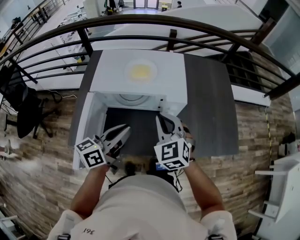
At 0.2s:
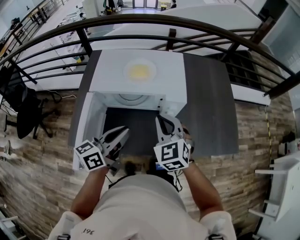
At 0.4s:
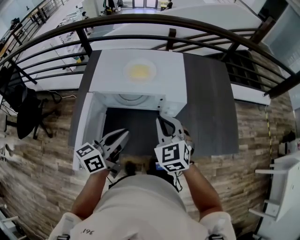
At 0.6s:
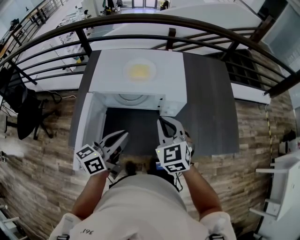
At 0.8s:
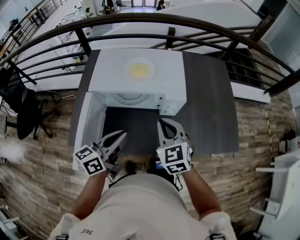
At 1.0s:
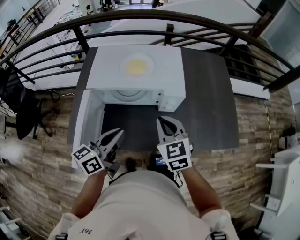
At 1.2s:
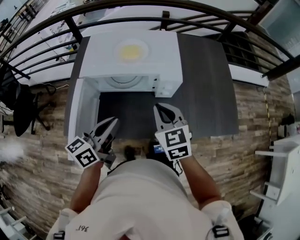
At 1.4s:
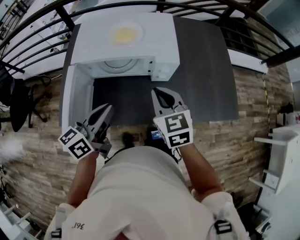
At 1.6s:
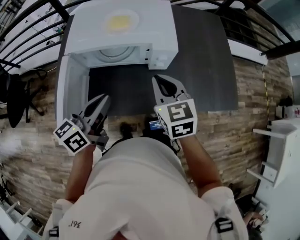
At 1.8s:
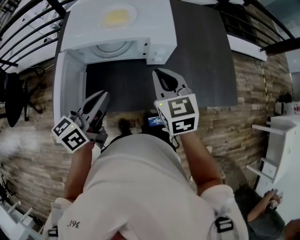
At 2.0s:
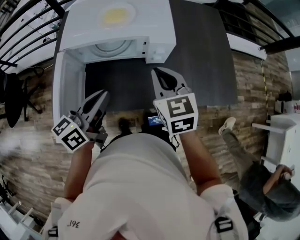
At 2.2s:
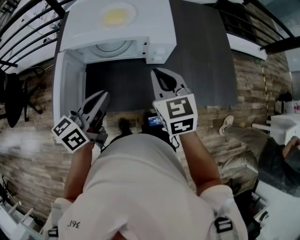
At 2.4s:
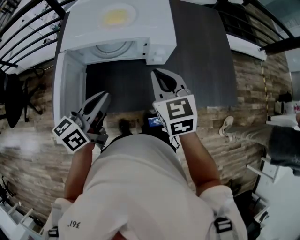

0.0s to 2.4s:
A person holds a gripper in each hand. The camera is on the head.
0.0s to 1.2s: The right gripper swivels some 20 degrees.
1.2s to 2.4s: The grippers move only a little.

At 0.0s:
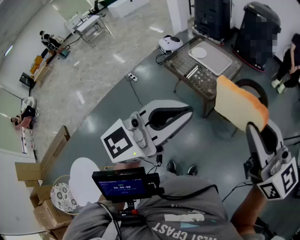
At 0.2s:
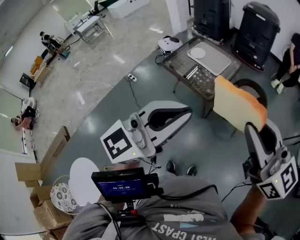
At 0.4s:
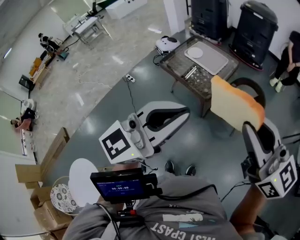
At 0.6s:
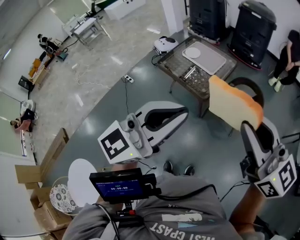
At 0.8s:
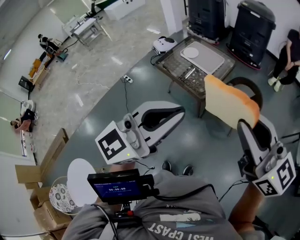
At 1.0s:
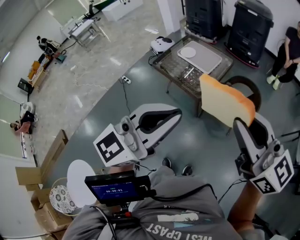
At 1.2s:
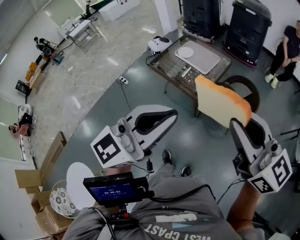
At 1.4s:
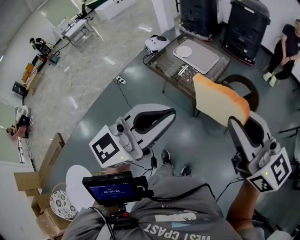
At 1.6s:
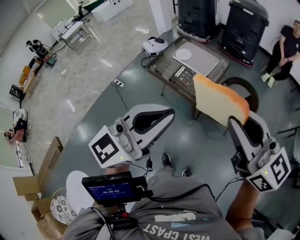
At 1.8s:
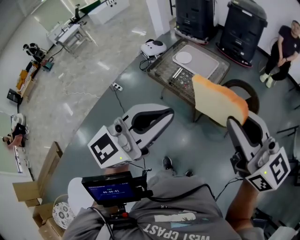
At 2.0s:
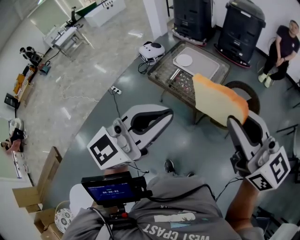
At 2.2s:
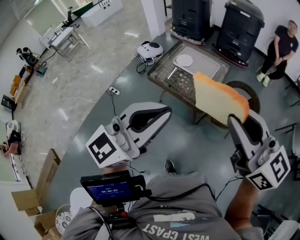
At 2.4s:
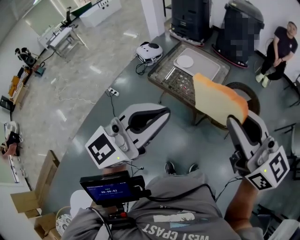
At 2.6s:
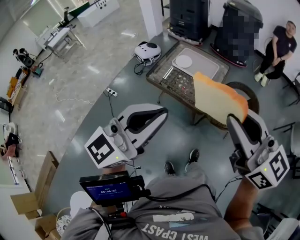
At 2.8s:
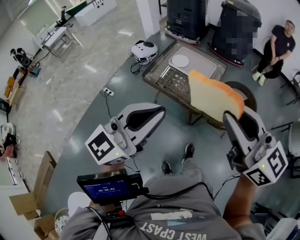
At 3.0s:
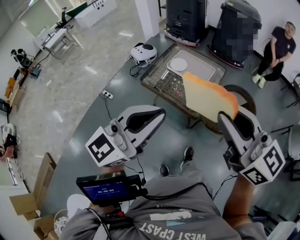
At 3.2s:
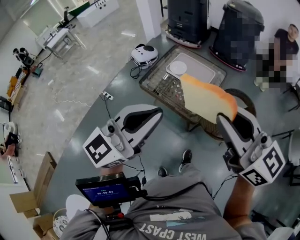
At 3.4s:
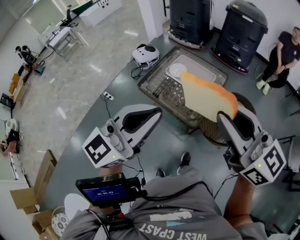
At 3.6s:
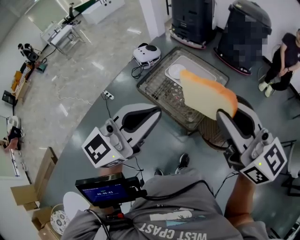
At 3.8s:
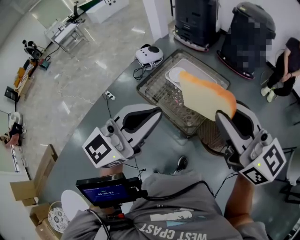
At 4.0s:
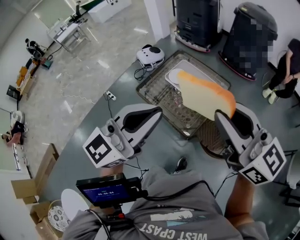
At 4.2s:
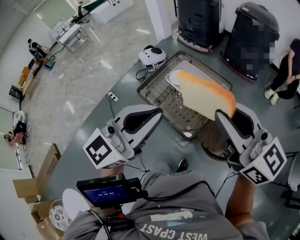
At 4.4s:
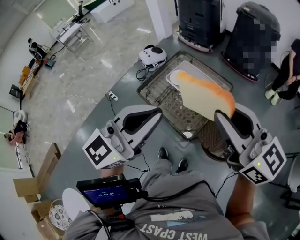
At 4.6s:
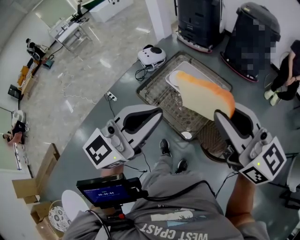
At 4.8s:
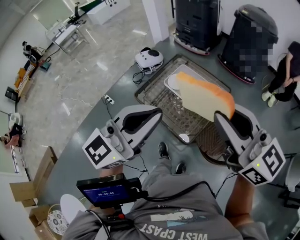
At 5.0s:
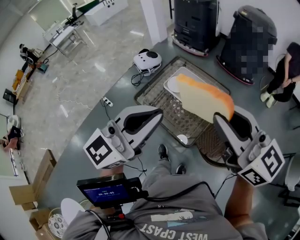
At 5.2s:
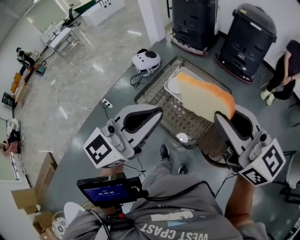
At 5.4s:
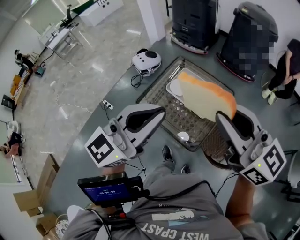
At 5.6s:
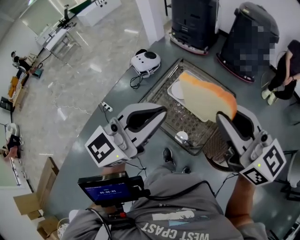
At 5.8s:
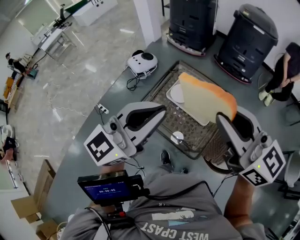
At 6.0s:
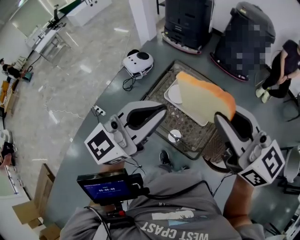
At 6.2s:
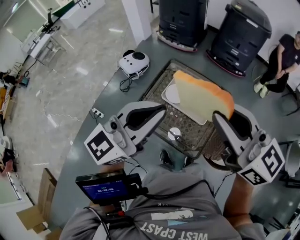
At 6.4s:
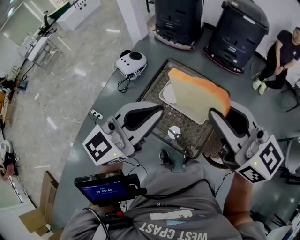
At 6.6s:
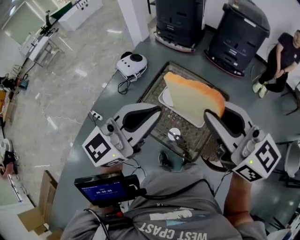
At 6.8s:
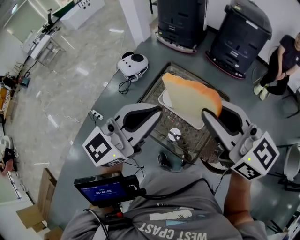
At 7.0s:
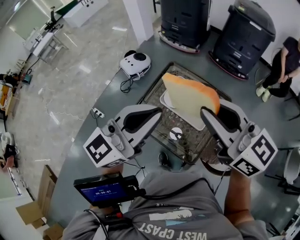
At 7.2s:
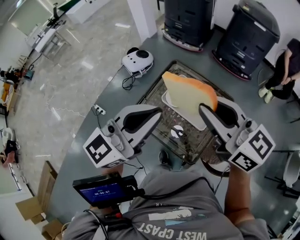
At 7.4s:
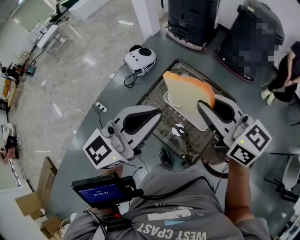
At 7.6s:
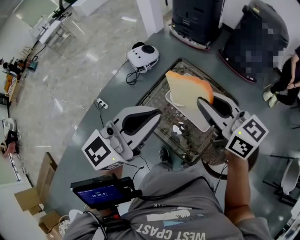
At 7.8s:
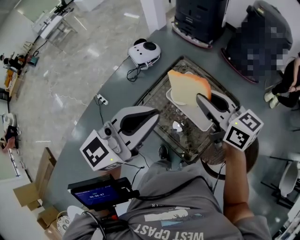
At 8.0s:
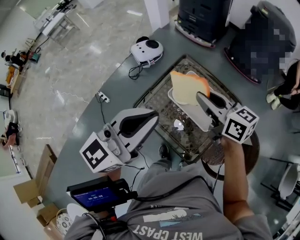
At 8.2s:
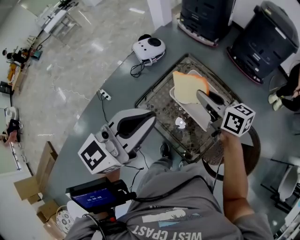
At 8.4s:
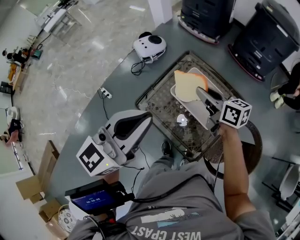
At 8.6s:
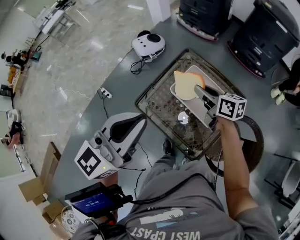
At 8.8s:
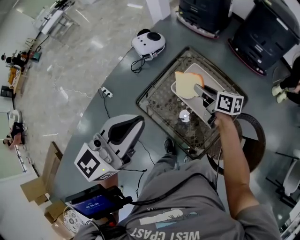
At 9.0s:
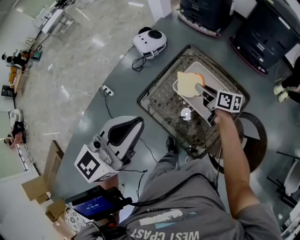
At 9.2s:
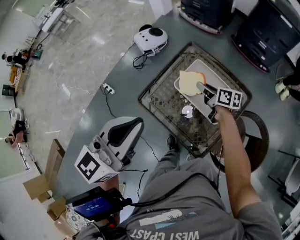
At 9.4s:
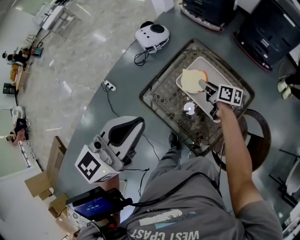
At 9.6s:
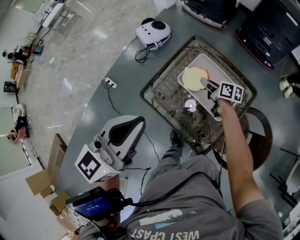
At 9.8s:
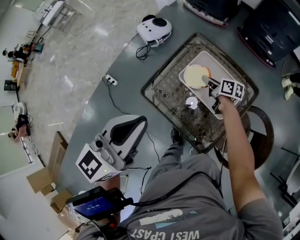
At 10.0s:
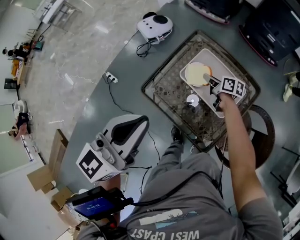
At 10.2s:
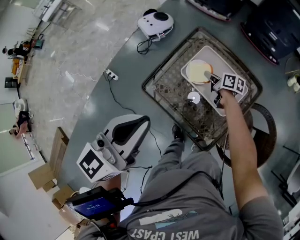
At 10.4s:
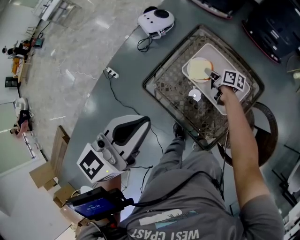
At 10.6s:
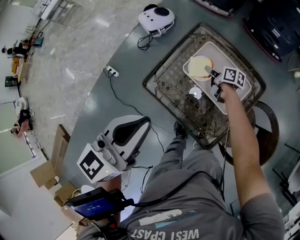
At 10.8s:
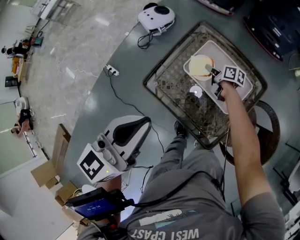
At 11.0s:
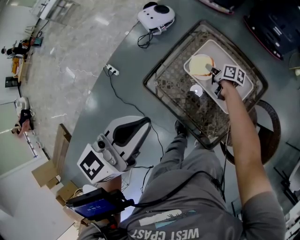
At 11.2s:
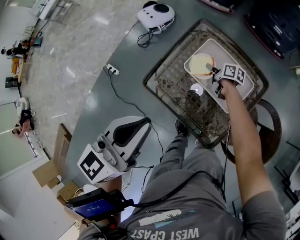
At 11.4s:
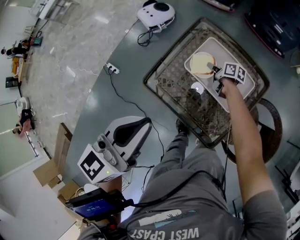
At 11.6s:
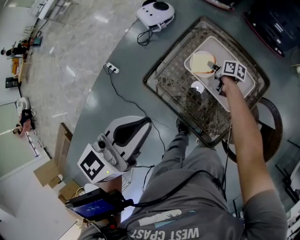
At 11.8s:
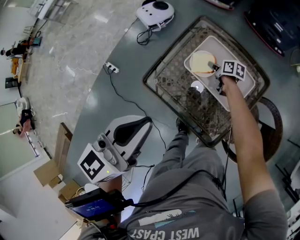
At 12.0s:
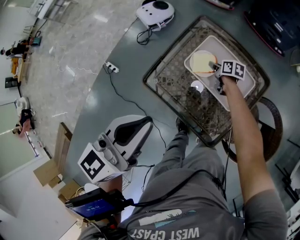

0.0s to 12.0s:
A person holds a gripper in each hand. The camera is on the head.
0.0s to 1.6s: Both grippers move forward, about 5 cm.
1.6s to 3.0s: The grippers both shift forward and to the left by about 15 cm.
3.0s to 4.4s: The grippers both shift forward and to the right by about 20 cm.
4.4s to 6.0s: The grippers both shift forward and to the left by about 25 cm.
6.0s to 7.6s: The left gripper goes about 5 cm forward; the right gripper goes roughly 15 cm forward and downward.
7.6s to 9.0s: The left gripper shifts approximately 5 cm to the left. Meanwhile the right gripper goes roughly 30 cm downward and forward, and rotates some 40 degrees.
9.0s to 10.4s: The right gripper goes some 15 cm downward; the left gripper is displaced downward by some 5 cm.
10.4s to 12.0s: The right gripper travels downward by some 5 cm.

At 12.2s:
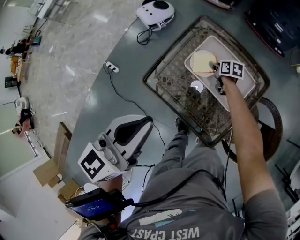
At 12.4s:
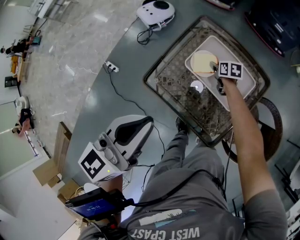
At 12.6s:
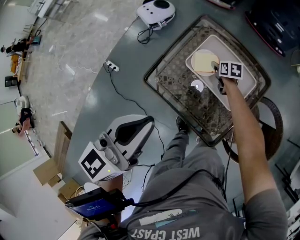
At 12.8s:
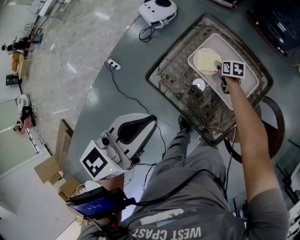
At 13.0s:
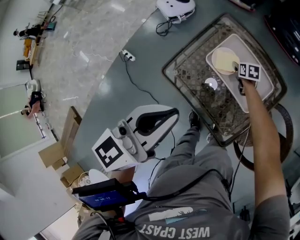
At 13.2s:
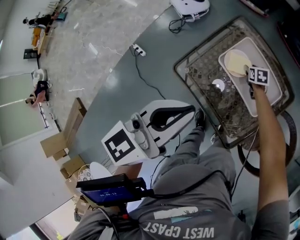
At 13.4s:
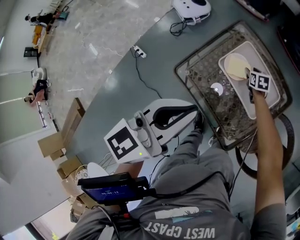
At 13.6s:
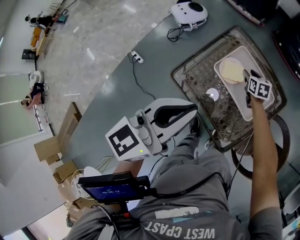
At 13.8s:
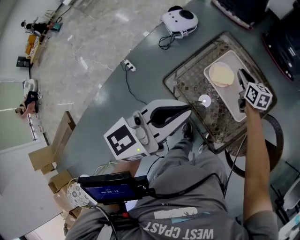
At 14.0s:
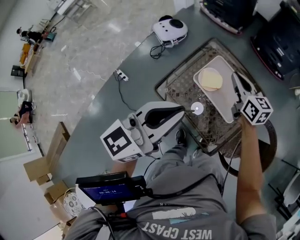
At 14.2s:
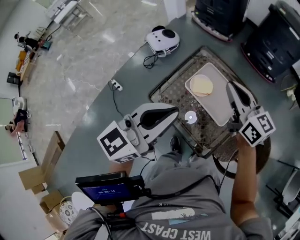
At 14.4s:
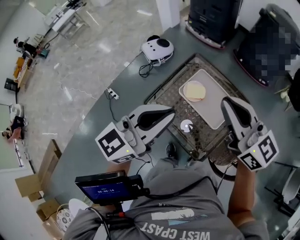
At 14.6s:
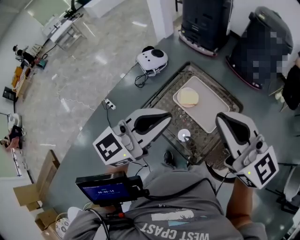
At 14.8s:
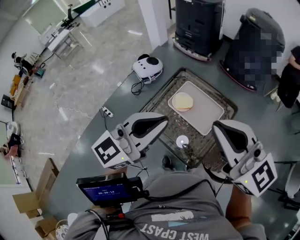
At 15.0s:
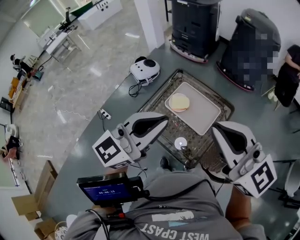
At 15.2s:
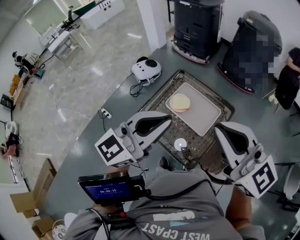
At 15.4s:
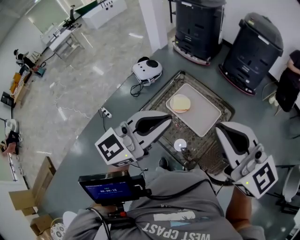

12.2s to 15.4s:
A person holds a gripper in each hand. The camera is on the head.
12.2s to 13.8s: The right gripper goes roughly 15 cm upward, and changes its angle by roughly 30 degrees.
13.8s to 15.4s: The right gripper travels upward and backward by some 50 cm, and angles its fingers upward, by approximately 30 degrees, while the left gripper goes roughly 15 cm upward, to the right and backward, and swivels about 20 degrees.

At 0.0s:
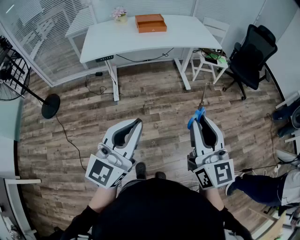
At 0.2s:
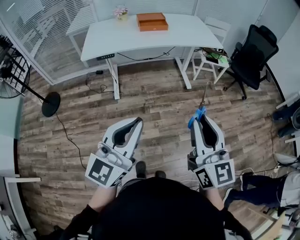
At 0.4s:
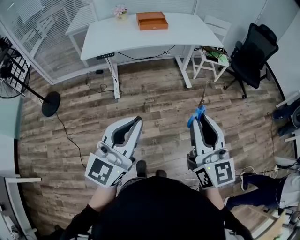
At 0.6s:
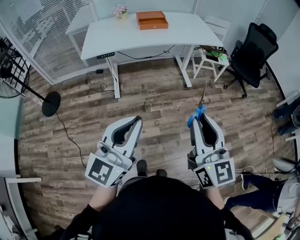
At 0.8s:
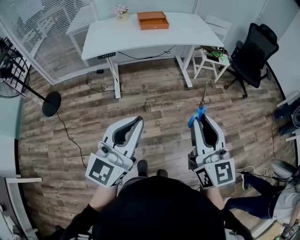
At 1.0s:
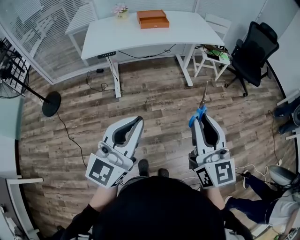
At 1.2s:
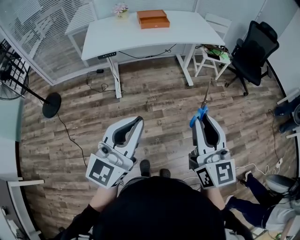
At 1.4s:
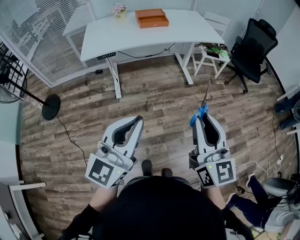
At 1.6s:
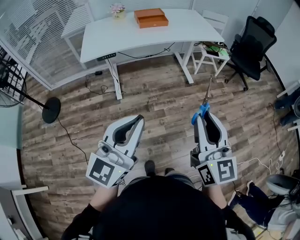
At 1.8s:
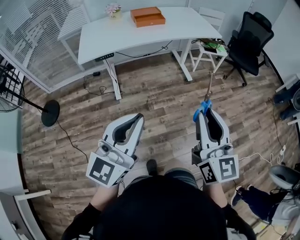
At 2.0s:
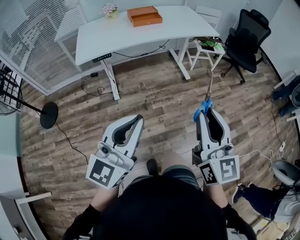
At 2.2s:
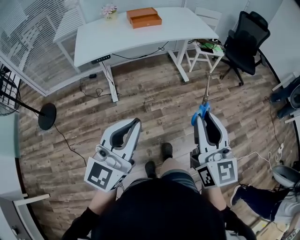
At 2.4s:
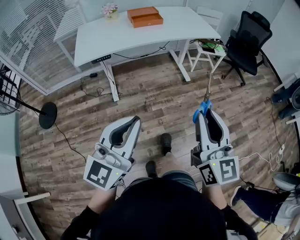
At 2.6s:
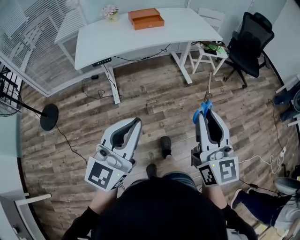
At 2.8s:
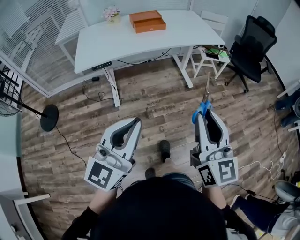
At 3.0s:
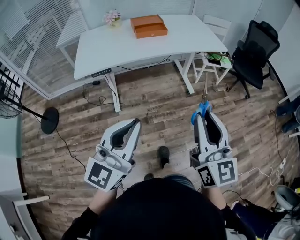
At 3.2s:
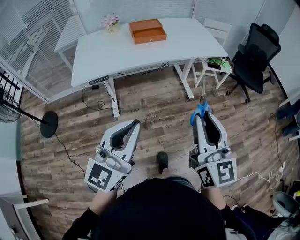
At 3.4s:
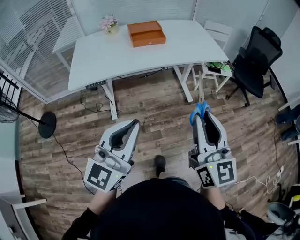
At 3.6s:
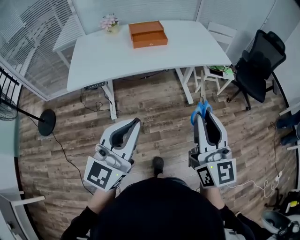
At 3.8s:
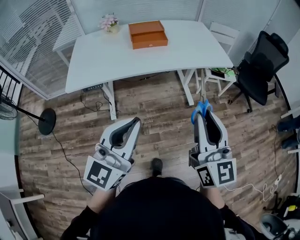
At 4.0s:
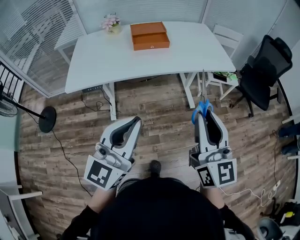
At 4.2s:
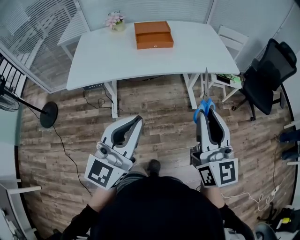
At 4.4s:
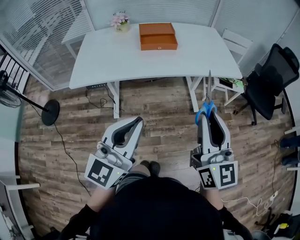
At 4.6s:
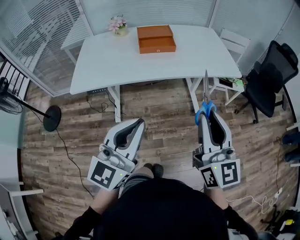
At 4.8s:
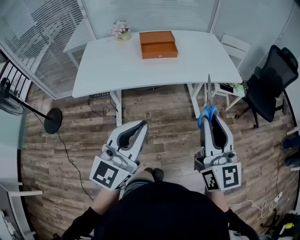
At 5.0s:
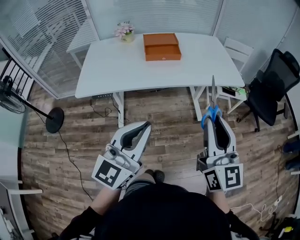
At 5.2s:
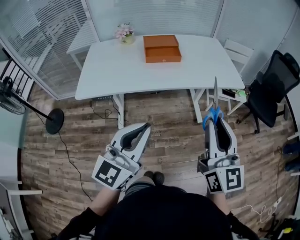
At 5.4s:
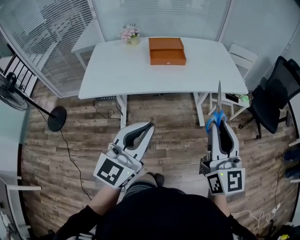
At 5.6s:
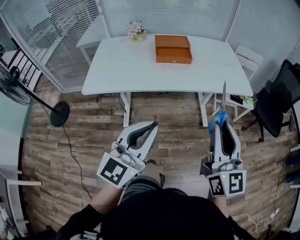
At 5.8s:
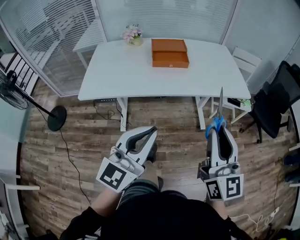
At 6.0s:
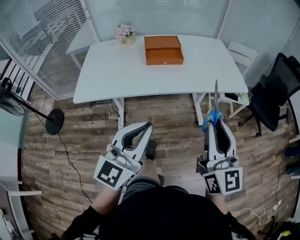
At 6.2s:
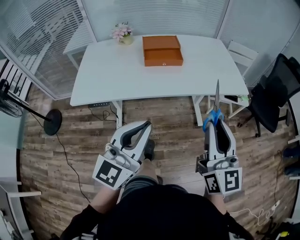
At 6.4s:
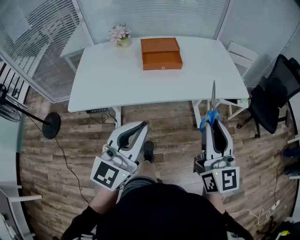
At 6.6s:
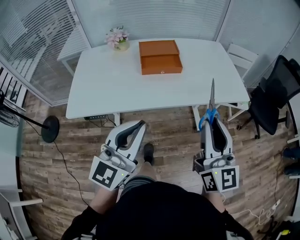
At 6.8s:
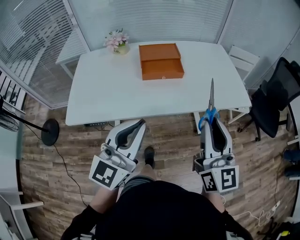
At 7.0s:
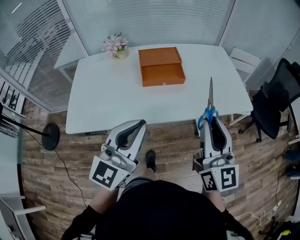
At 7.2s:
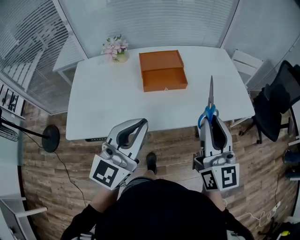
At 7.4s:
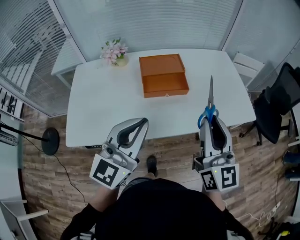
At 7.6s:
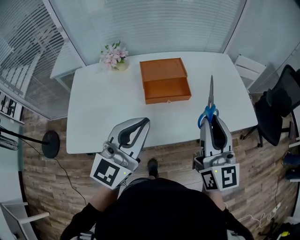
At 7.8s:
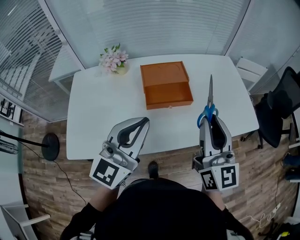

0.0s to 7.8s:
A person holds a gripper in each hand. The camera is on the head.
0.0s to 1.6s: The right gripper shifts by about 5 cm; the left gripper heads to the left, covering roughly 5 cm.
1.6s to 3.2s: The grippers both shift forward by approximately 15 cm.
3.2s to 4.6s: Both grippers move forward, about 15 cm.
4.6s to 6.2s: Both grippers move forward, approximately 10 cm.
6.2s to 7.8s: The grippers both shift forward and to the left by about 30 cm.
